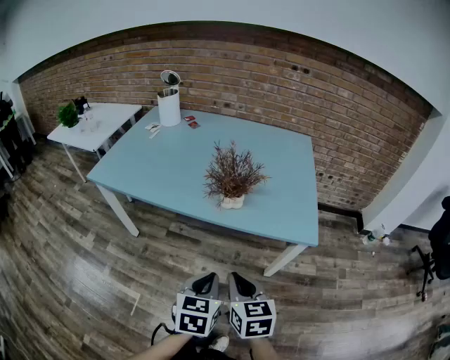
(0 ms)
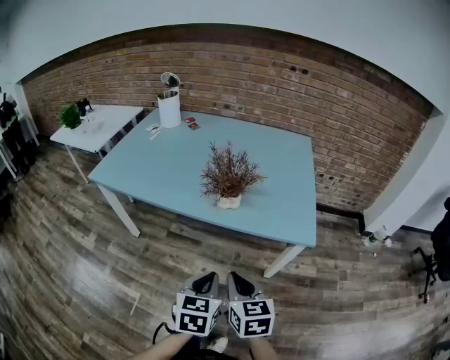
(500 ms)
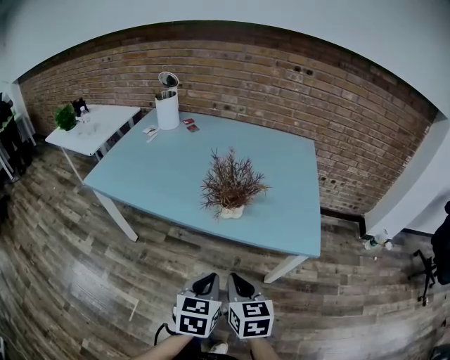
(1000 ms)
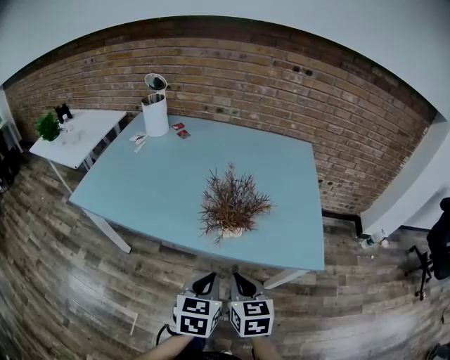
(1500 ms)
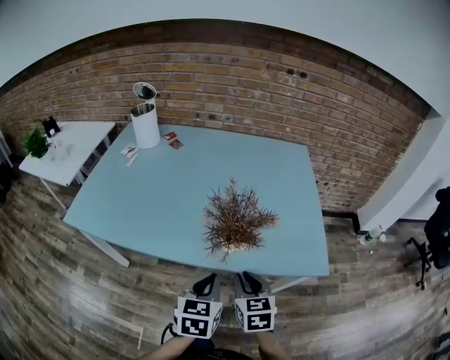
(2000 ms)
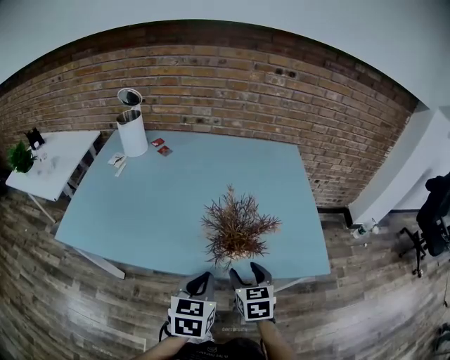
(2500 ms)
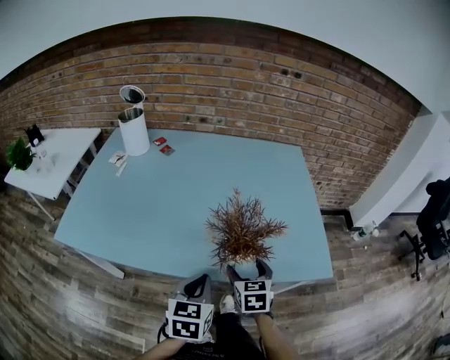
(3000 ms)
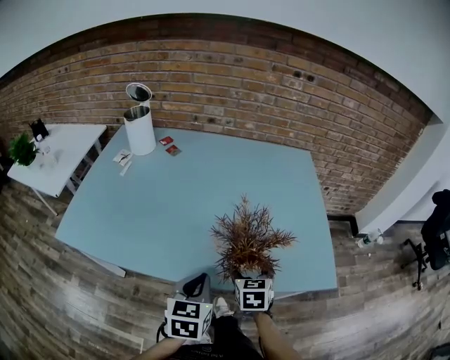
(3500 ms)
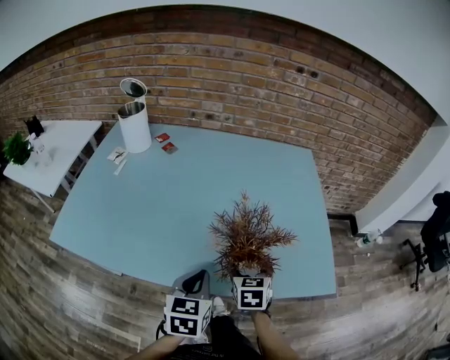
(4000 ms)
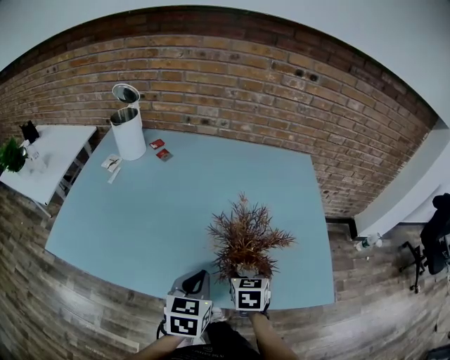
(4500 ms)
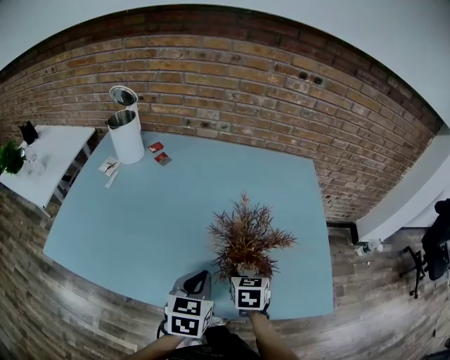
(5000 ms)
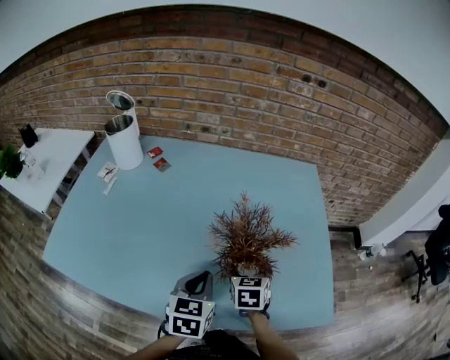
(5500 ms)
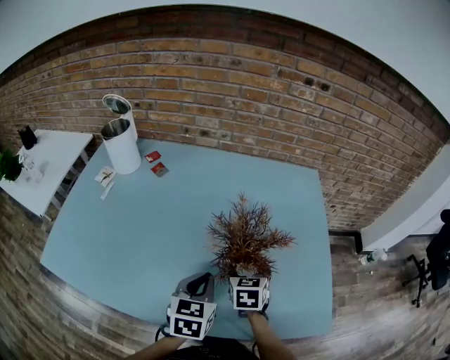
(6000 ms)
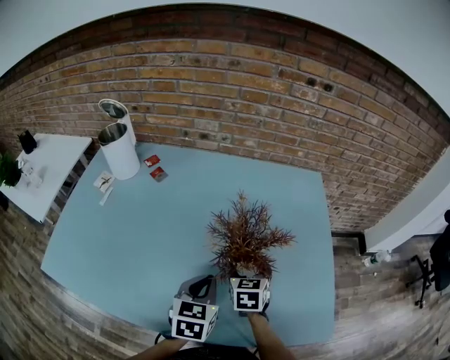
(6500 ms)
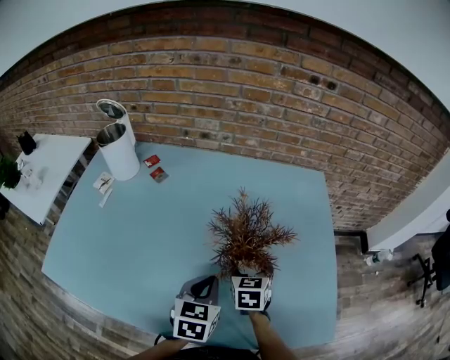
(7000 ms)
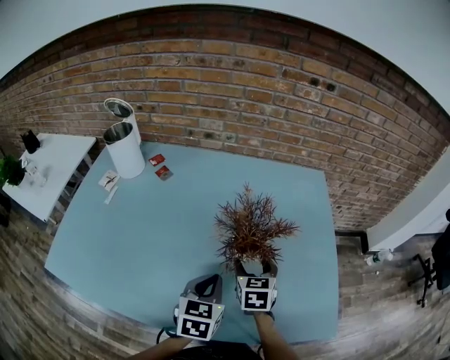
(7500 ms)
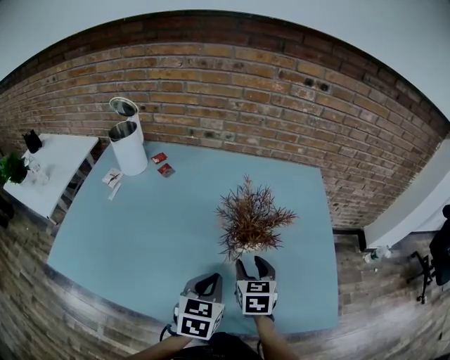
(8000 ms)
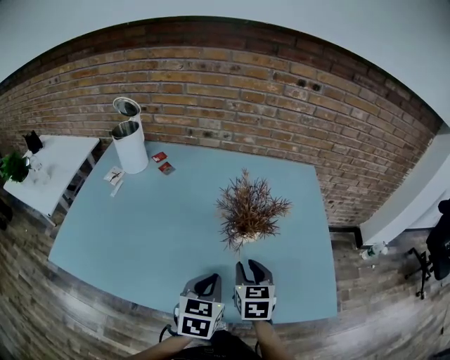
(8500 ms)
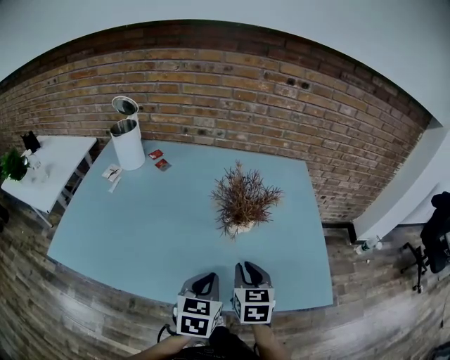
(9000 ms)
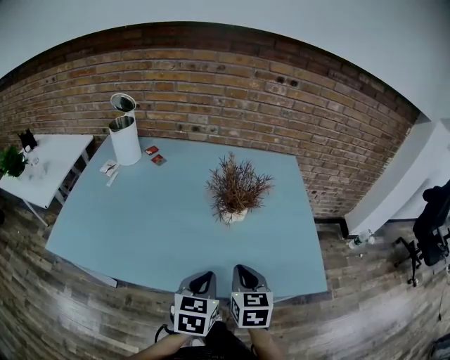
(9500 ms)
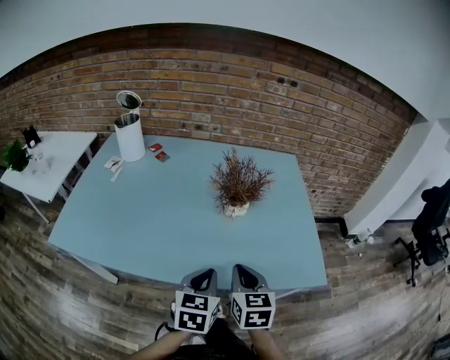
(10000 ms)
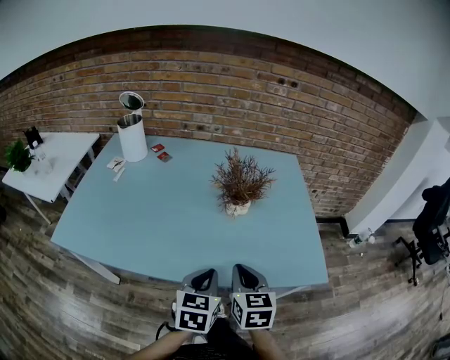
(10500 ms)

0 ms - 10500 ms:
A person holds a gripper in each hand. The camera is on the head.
0 ms - 2000 ms: The two grippers go some 20 cm forward.
2000 ms - 4000 ms: The left gripper is displaced forward and to the left by some 10 cm, while the right gripper shifts approximately 15 cm forward, and opens.
4000 ms - 6500 ms: The grippers both shift forward by approximately 15 cm.
6500 ms - 8500 ms: Both grippers travel together backward, about 10 cm. The right gripper closes.
8500 ms - 10500 ms: The grippers both shift backward by some 15 cm.

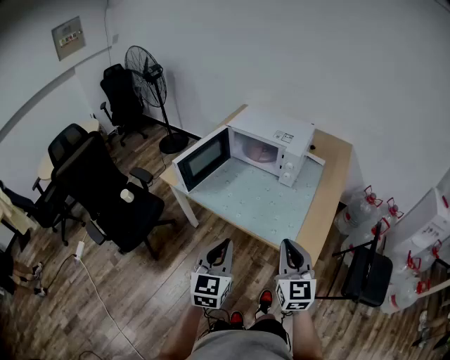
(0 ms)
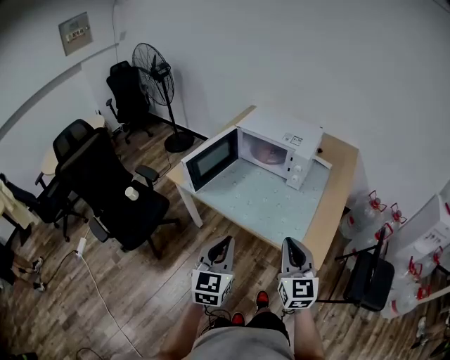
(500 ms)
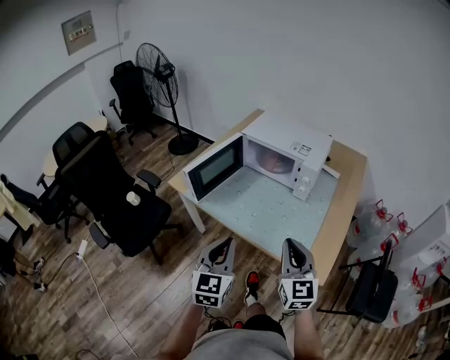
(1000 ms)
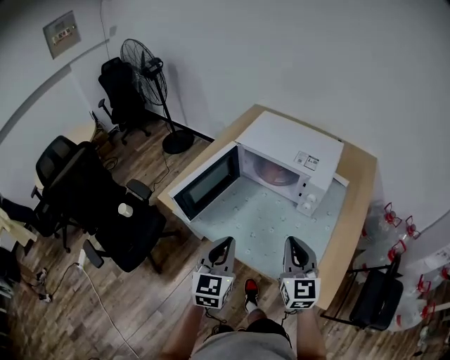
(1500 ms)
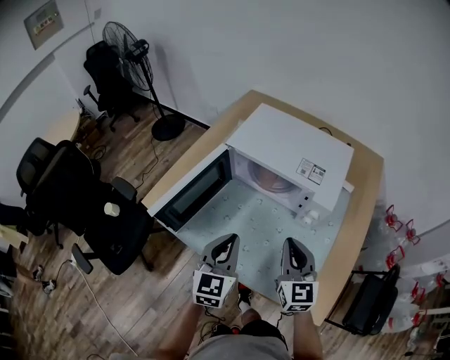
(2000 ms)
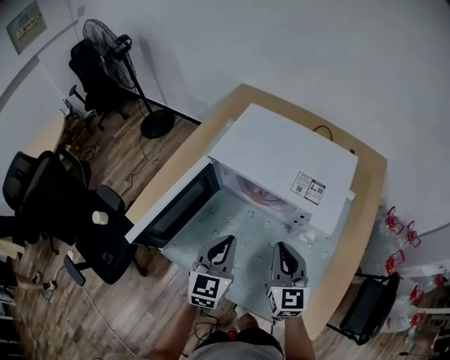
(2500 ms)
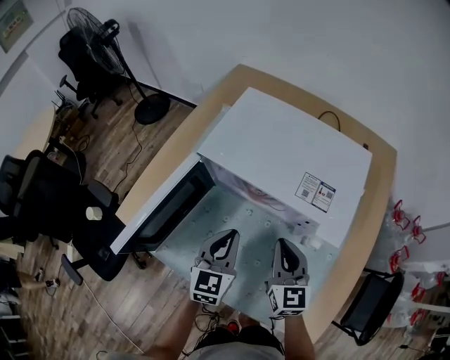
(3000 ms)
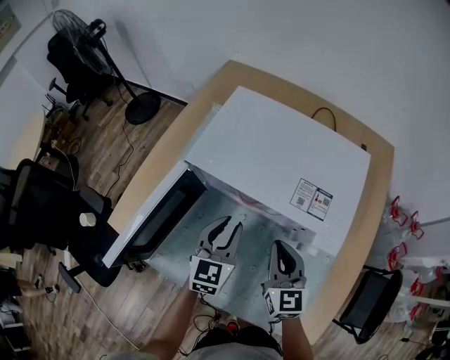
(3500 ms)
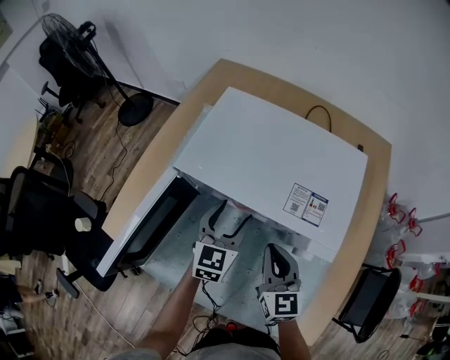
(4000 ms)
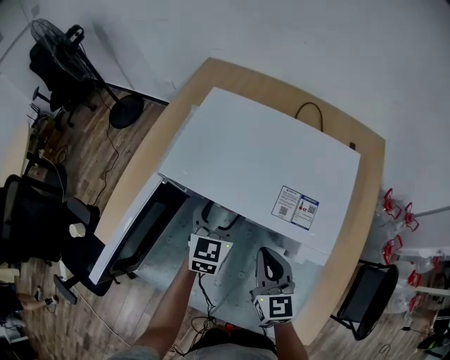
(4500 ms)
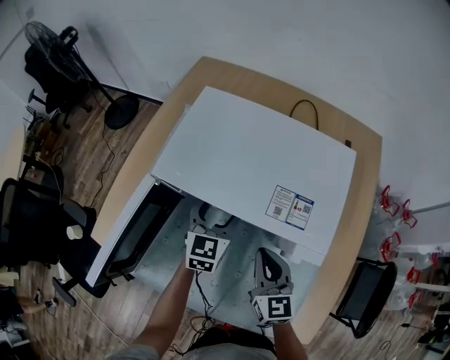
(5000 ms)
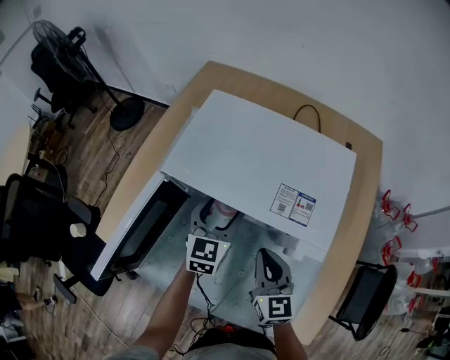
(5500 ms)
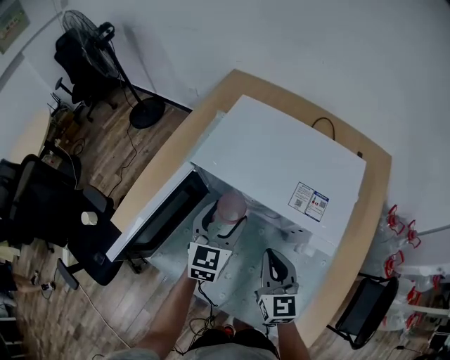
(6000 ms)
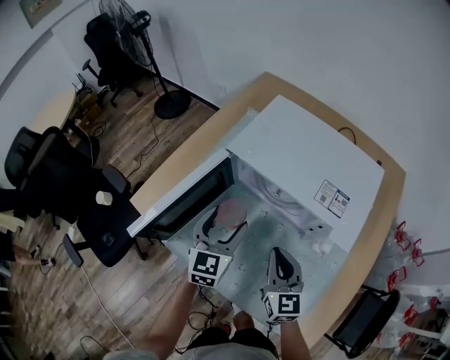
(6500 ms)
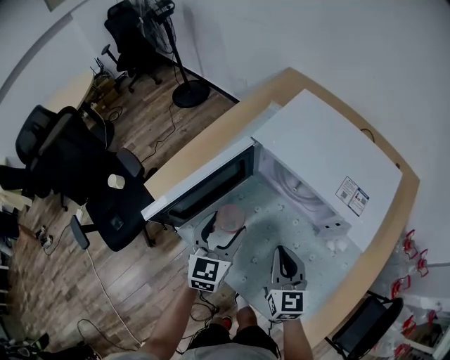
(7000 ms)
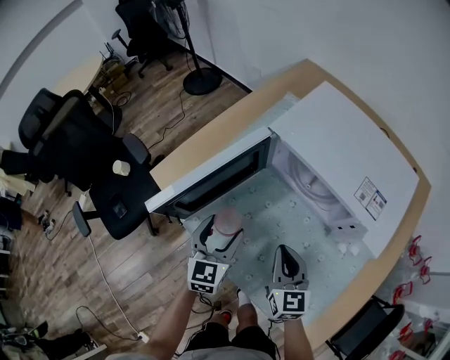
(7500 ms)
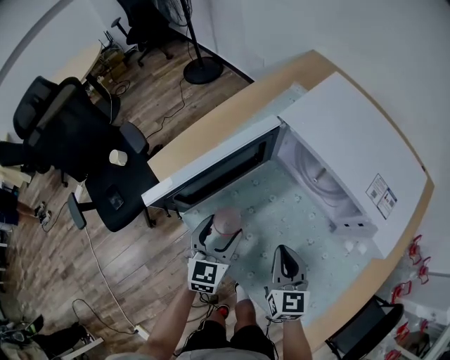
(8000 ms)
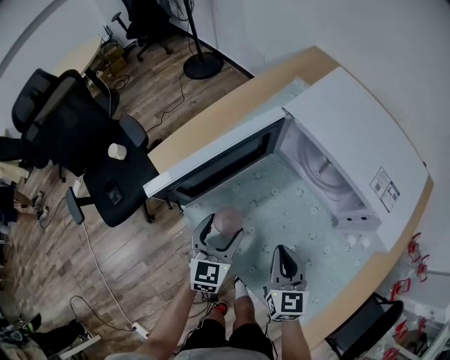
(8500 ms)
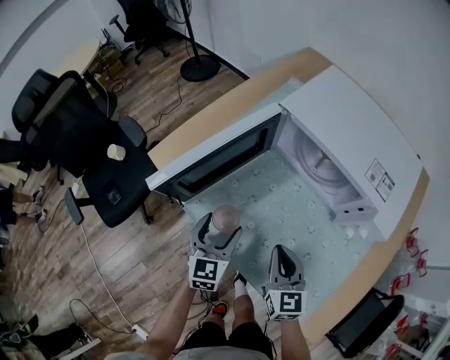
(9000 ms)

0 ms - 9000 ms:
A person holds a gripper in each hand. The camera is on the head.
0 ms - 2000 ms: Both grippers move forward, some 35 cm.
2000 ms - 4500 ms: The left gripper shifts about 30 cm forward and downward, and opens its fingers, while the right gripper moves forward and downward, approximately 15 cm.
4500 ms - 7000 ms: The left gripper moves backward and to the left, some 25 cm, and rotates about 20 degrees; the right gripper goes roughly 10 cm to the left and backward.
7000 ms - 9000 ms: The right gripper travels backward and downward by about 5 cm; the left gripper moves downward, backward and to the left, roughly 10 cm.

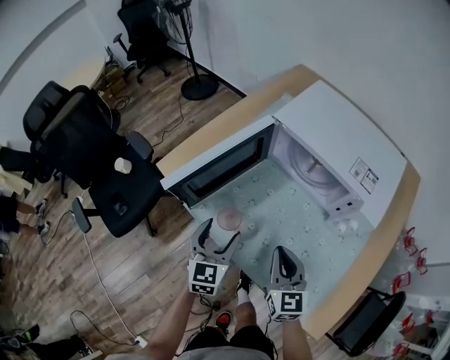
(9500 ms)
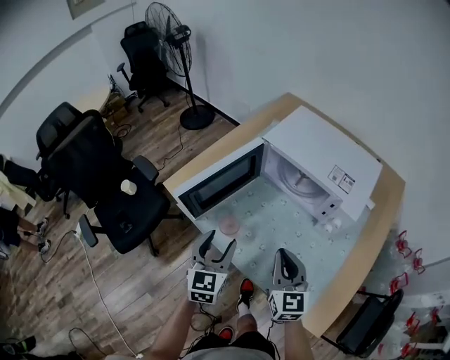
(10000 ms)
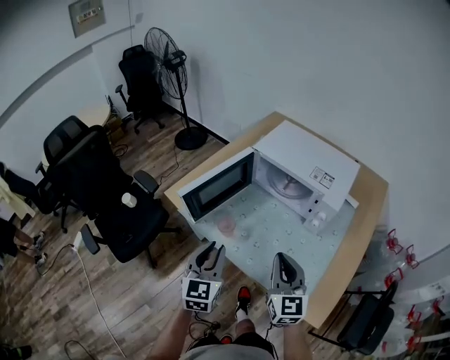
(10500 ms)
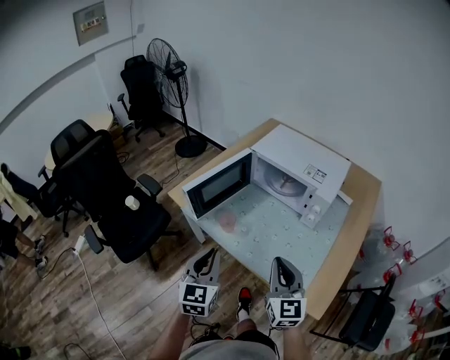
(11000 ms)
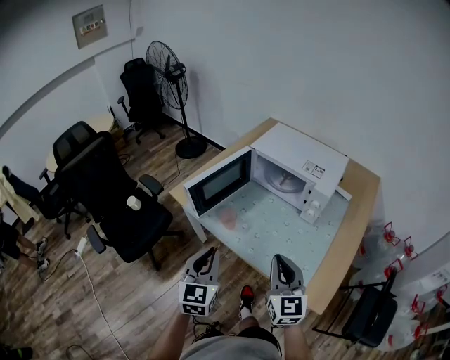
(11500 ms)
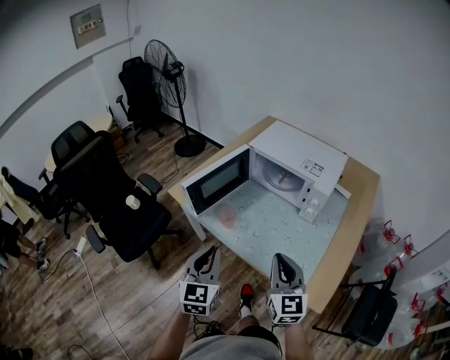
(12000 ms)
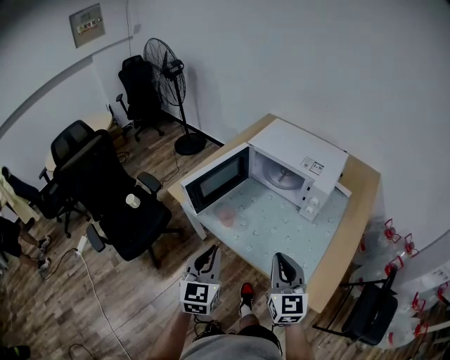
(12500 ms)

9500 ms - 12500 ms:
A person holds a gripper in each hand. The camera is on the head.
9500 ms - 11000 ms: The two grippers go about 25 cm backward and upward. The left gripper closes.
11000 ms - 12500 ms: There are only small adjustments of the grippers.

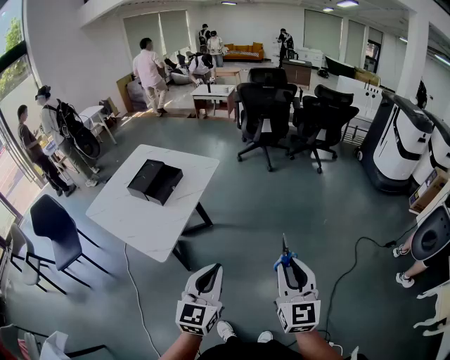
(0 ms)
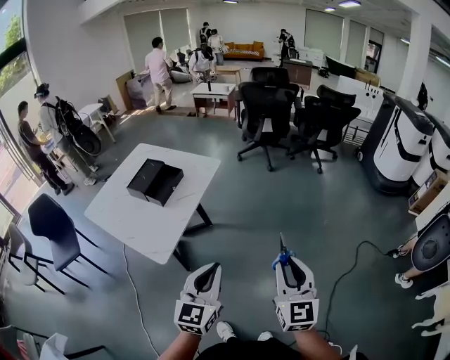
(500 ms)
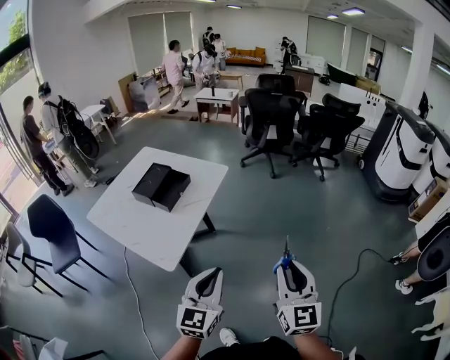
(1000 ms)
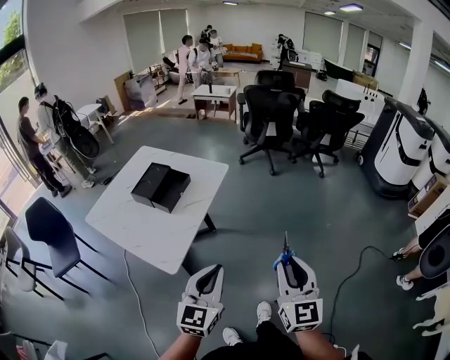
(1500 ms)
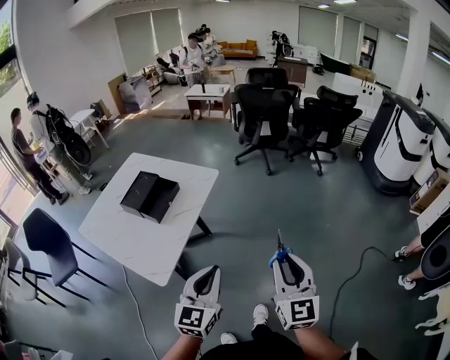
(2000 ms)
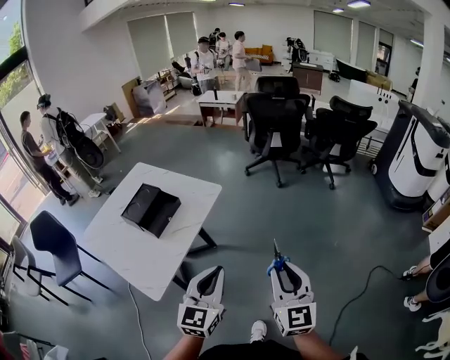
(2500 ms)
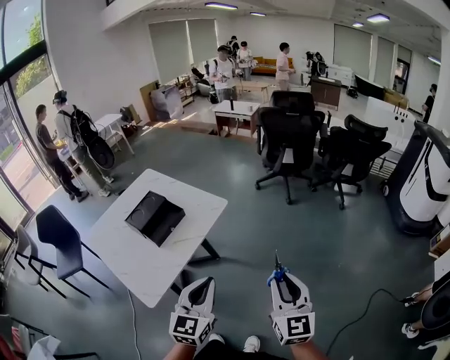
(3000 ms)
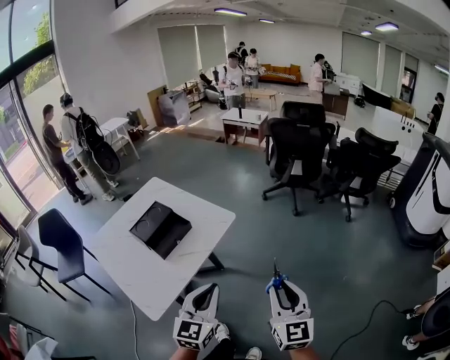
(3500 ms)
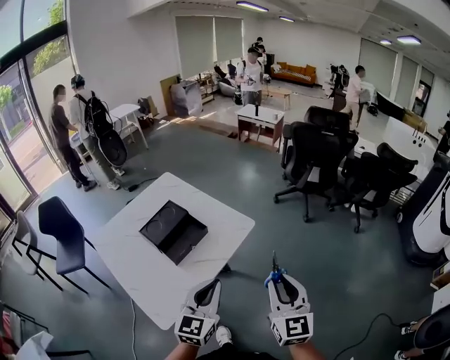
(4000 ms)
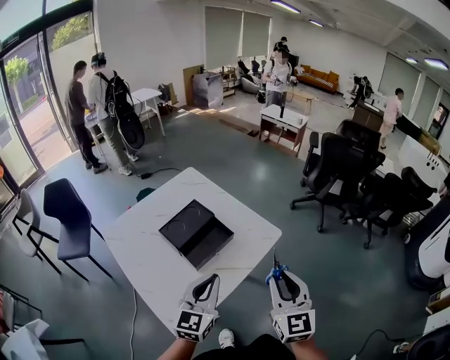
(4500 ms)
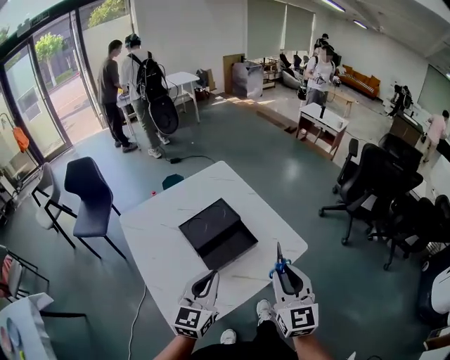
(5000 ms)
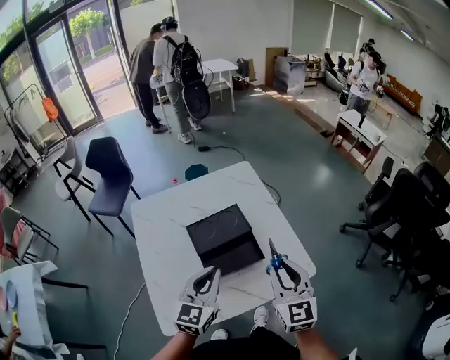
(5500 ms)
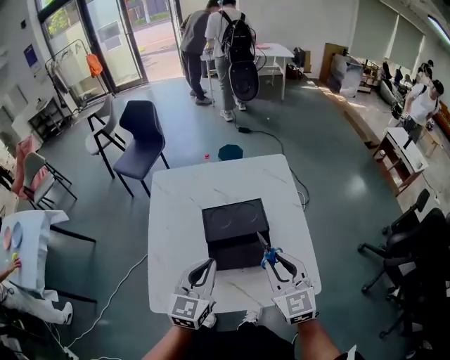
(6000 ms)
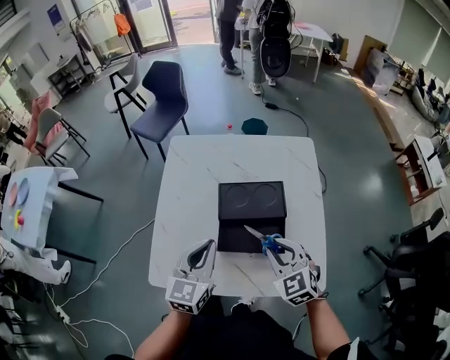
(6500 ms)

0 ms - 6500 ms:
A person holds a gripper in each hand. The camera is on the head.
0 ms - 2000 ms: The left gripper heads forward, covering approximately 10 cm. The right gripper shifts about 10 cm forward and to the left.
2000 ms - 4500 ms: The two grippers go approximately 30 cm forward and to the left. The left gripper swivels about 20 degrees; the right gripper rotates about 20 degrees.
4500 ms - 6500 ms: The left gripper changes place by about 15 cm, and swivels some 50 degrees. The right gripper ends up about 30 cm from where it was, and swivels approximately 70 degrees.
